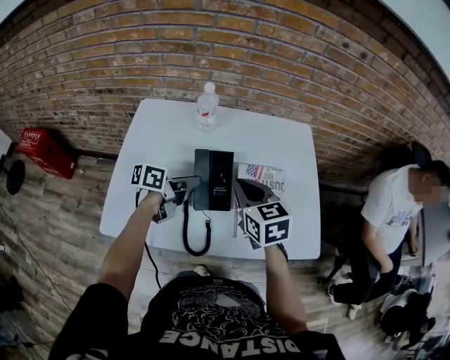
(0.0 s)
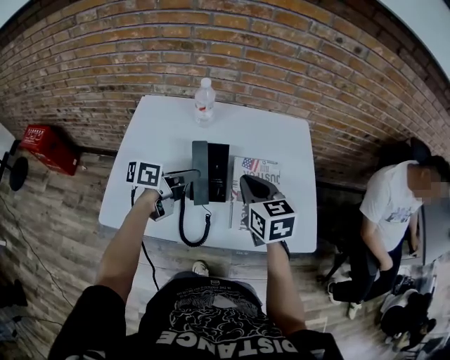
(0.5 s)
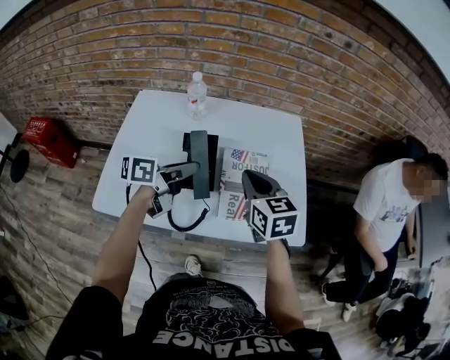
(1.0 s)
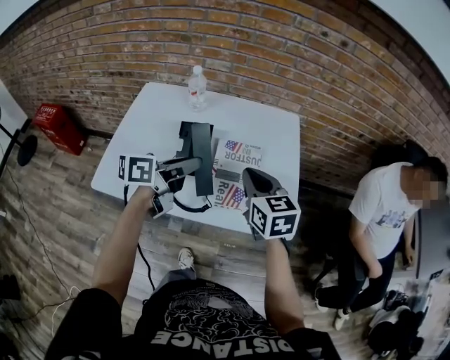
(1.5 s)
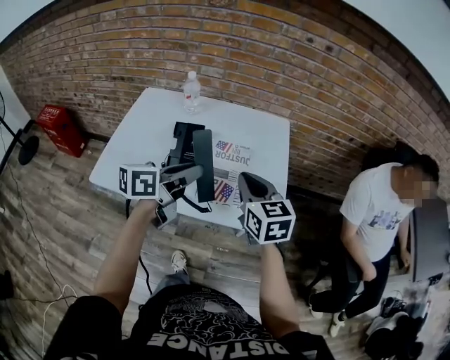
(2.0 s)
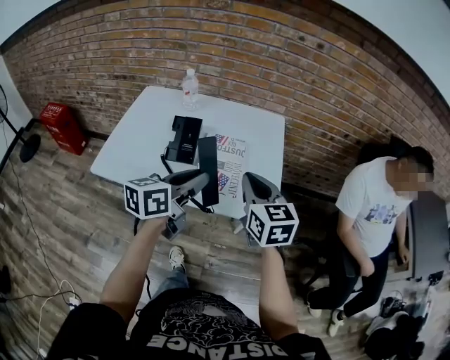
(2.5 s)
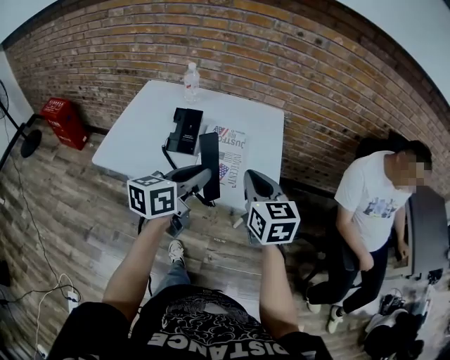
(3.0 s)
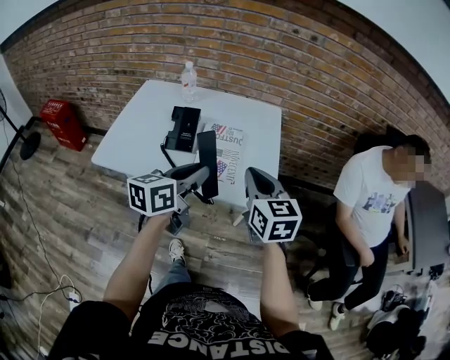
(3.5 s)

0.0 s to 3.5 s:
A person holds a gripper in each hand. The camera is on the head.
0.0 to 2.0 s: The left gripper moves to the right, upward and backward, about 30 cm, and turns by some 30 degrees; the right gripper goes approximately 20 cm to the right and backward.
2.0 to 3.5 s: Both grippers travel together backward and to the right, roughly 10 cm.

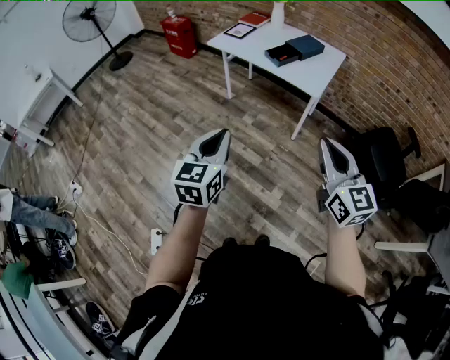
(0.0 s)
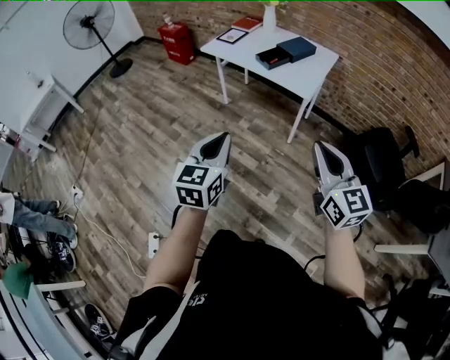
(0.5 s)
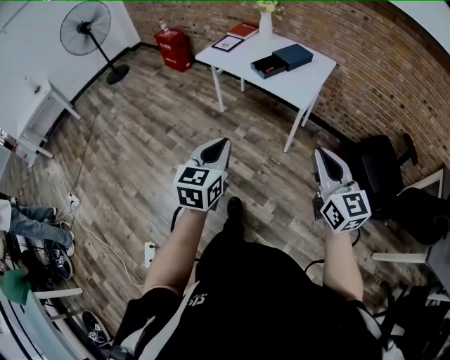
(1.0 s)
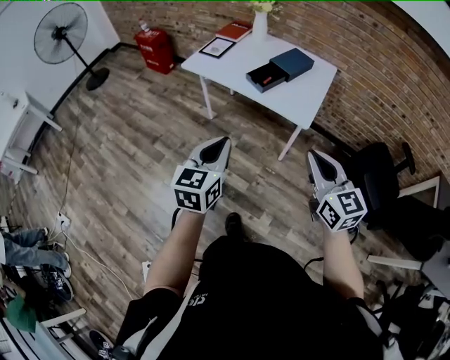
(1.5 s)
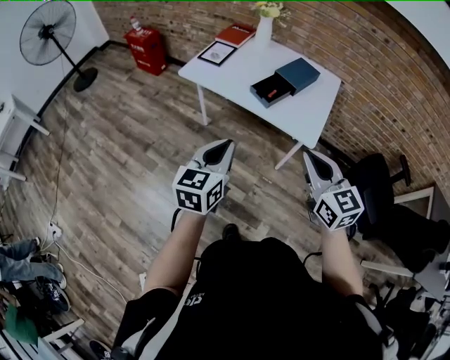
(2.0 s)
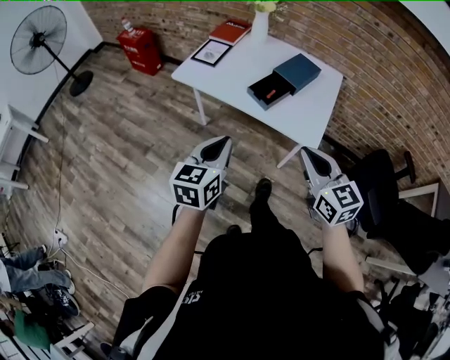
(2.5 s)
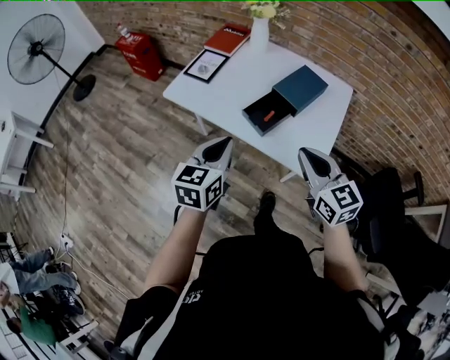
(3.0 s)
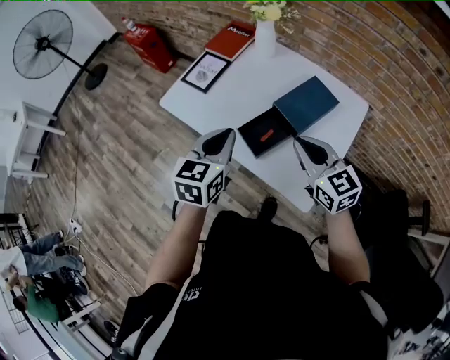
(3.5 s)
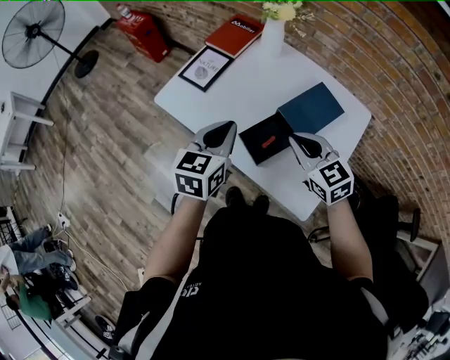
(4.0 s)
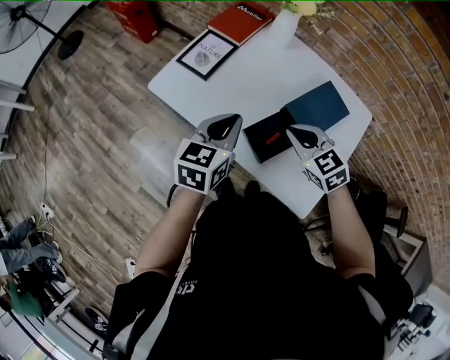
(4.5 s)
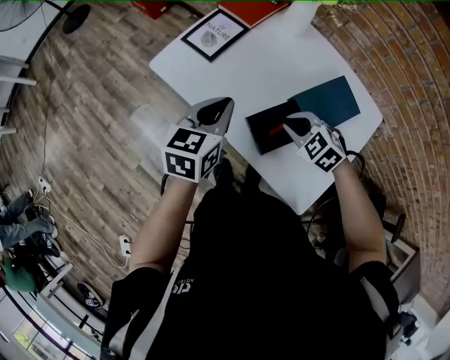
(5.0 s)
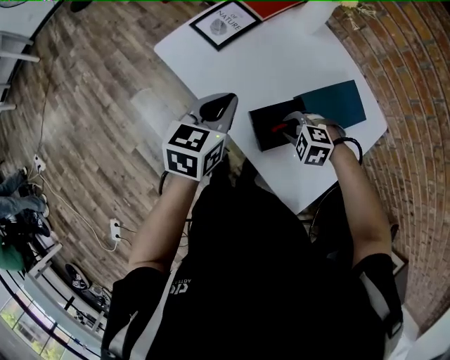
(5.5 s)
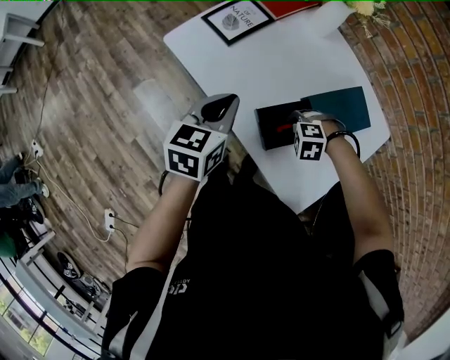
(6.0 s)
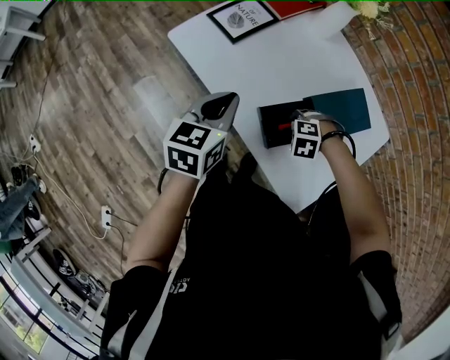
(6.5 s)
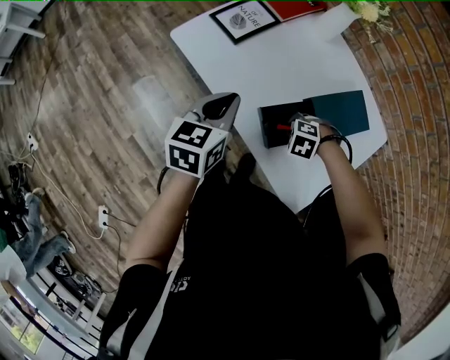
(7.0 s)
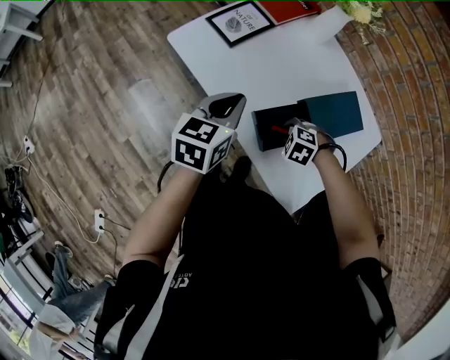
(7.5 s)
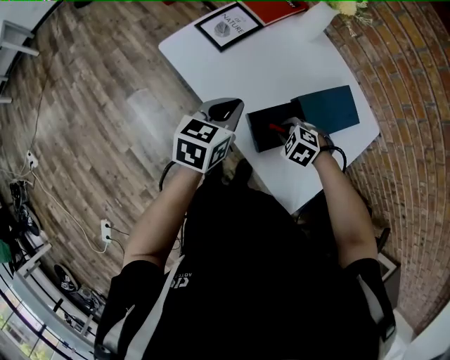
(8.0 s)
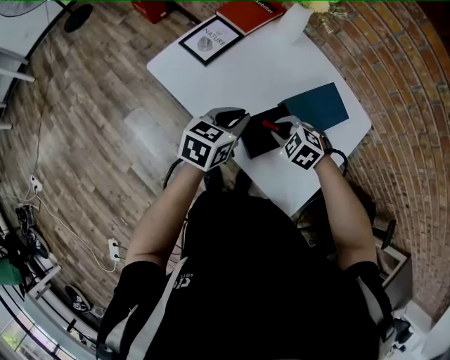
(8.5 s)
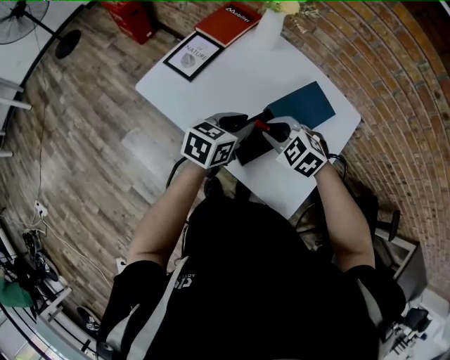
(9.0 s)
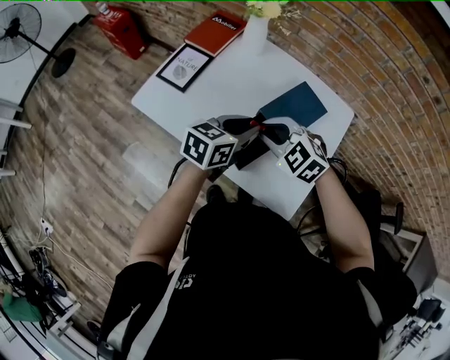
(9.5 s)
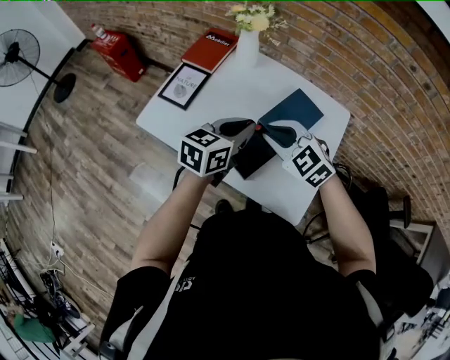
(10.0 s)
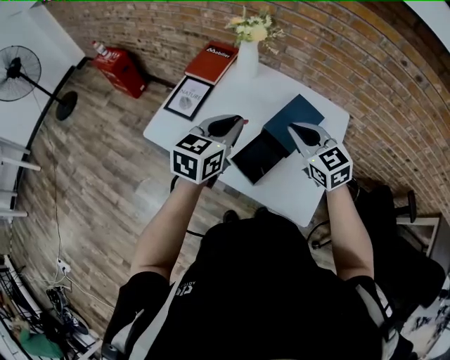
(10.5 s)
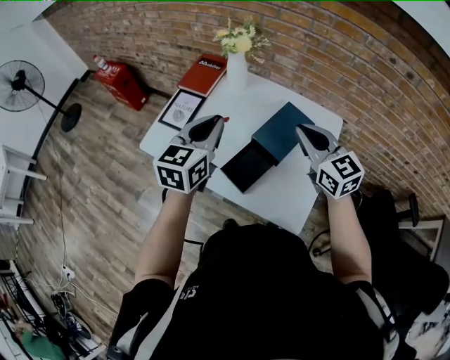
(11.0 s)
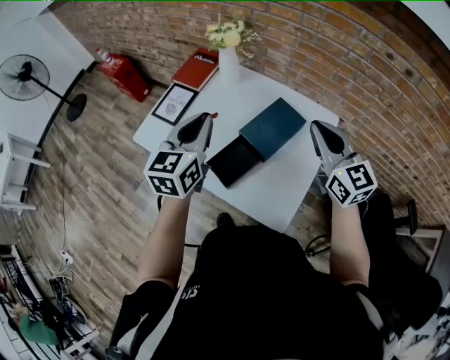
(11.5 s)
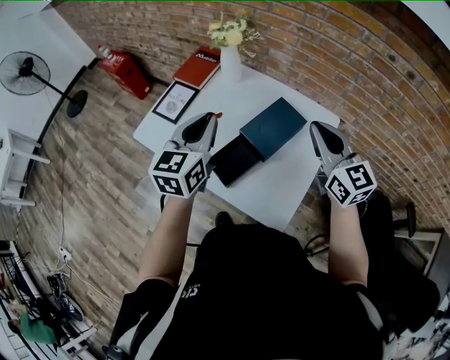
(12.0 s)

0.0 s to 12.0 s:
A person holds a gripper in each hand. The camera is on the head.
0.0 to 2.0 s: Both grippers travel together forward, roughly 35 cm.
2.0 to 4.0 s: Both grippers are carried forward, some 40 cm. The right gripper rotates approximately 30 degrees.
4.0 to 6.0 s: The right gripper is displaced downward by some 25 cm, and tilts its fingers some 60 degrees downward. The left gripper travels downward by some 10 cm.
6.0 to 8.0 s: The right gripper turns by about 30 degrees.
8.0 to 10.0 s: The left gripper changes place by roughly 15 cm, and swivels about 30 degrees, while the right gripper shifts roughly 25 cm upward, and angles its fingers upward, by roughly 40 degrees.
10.0 to 12.0 s: The right gripper heads to the right and upward, covering about 25 cm, and angles its fingers upward, by about 30 degrees; the left gripper is displaced upward by approximately 10 cm, and changes its angle by about 30 degrees.

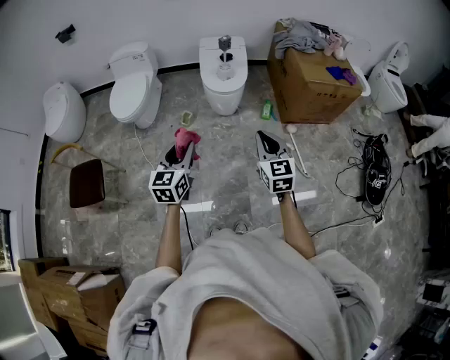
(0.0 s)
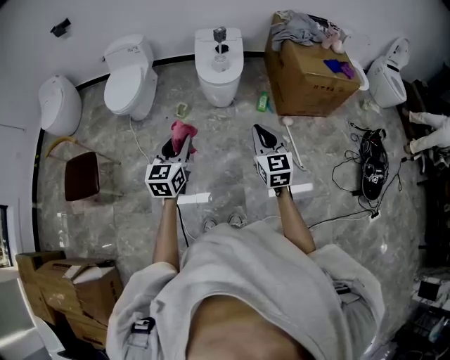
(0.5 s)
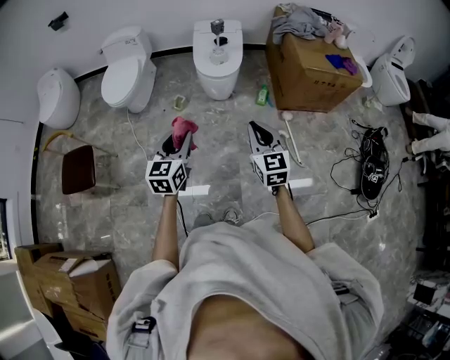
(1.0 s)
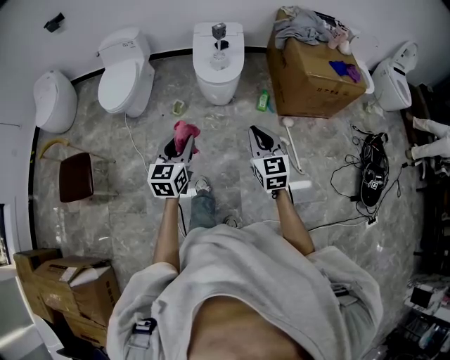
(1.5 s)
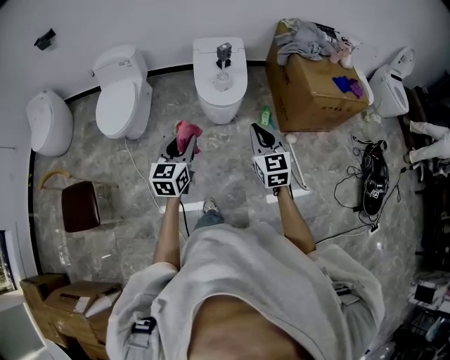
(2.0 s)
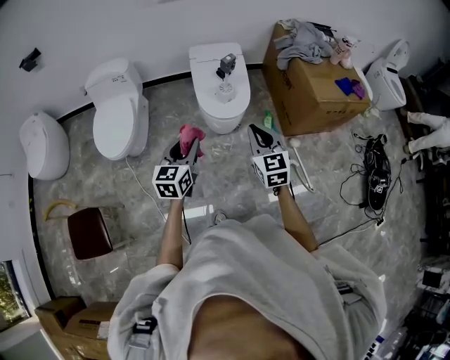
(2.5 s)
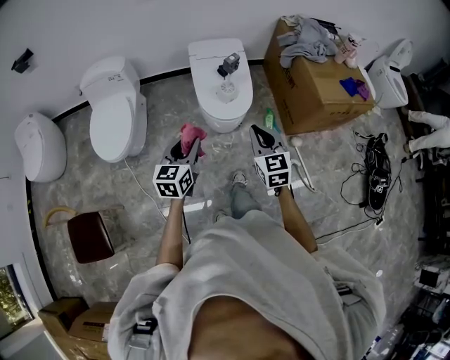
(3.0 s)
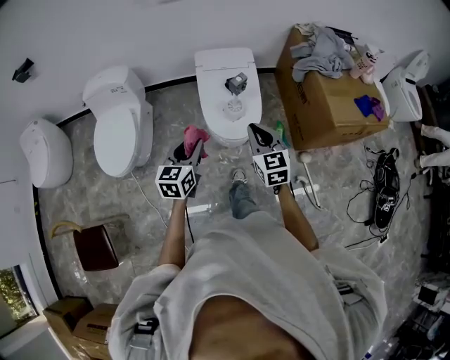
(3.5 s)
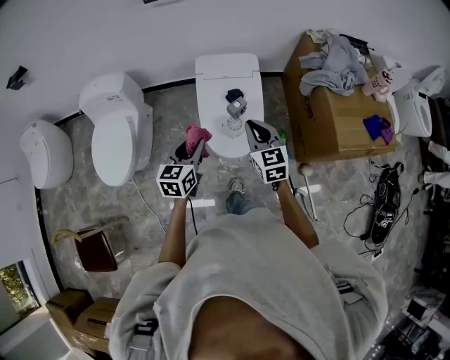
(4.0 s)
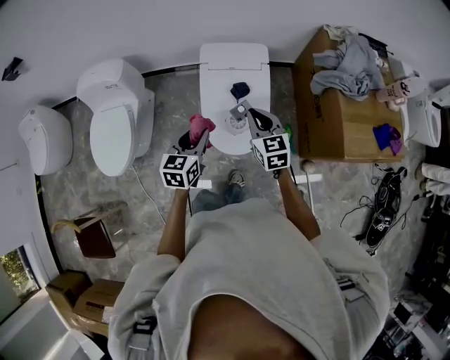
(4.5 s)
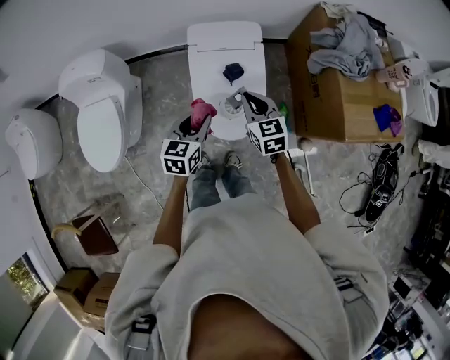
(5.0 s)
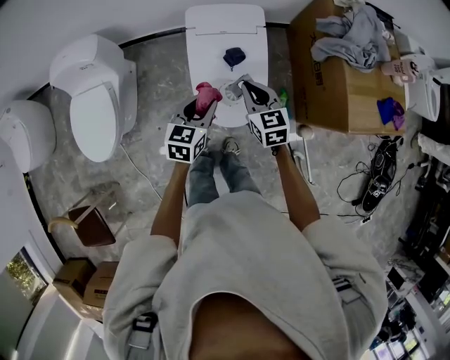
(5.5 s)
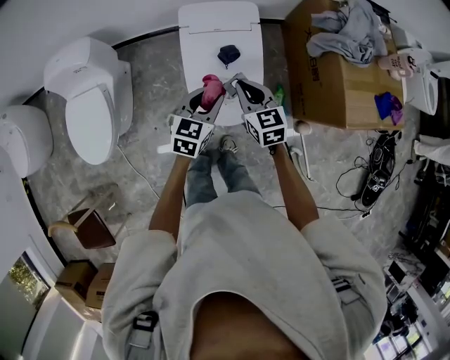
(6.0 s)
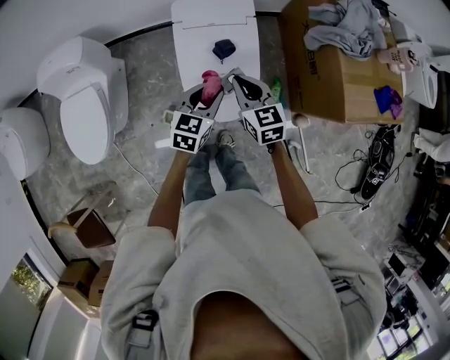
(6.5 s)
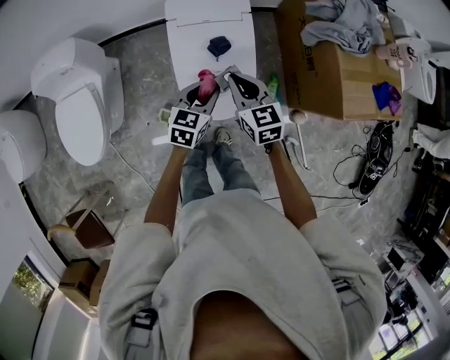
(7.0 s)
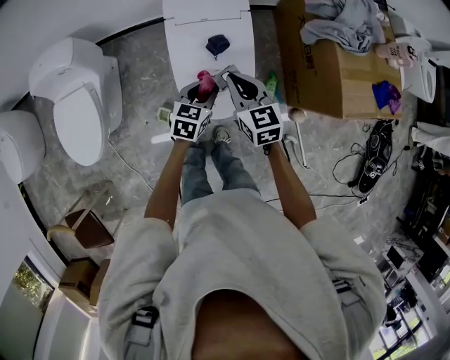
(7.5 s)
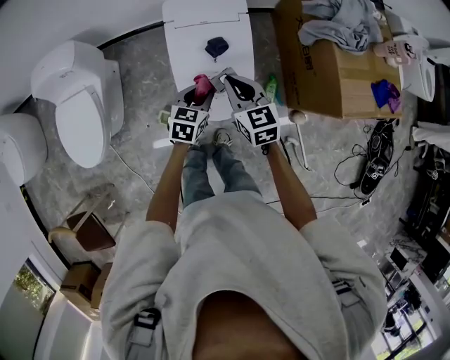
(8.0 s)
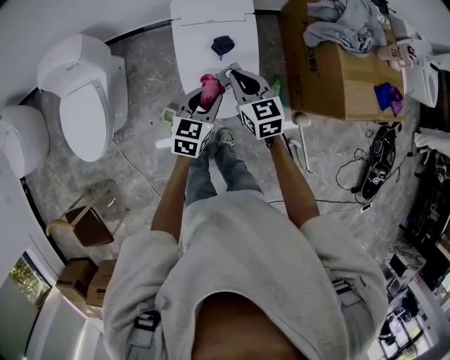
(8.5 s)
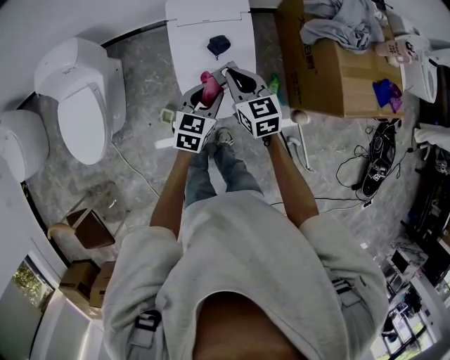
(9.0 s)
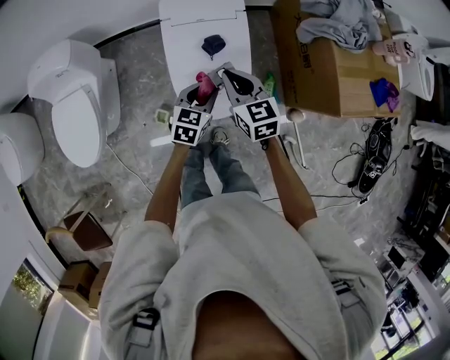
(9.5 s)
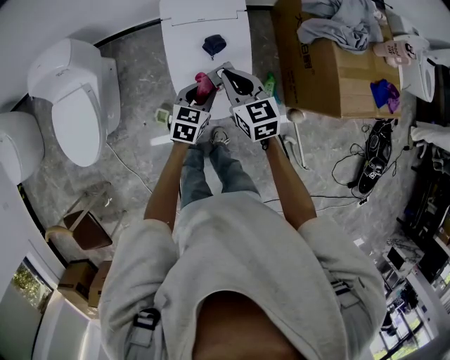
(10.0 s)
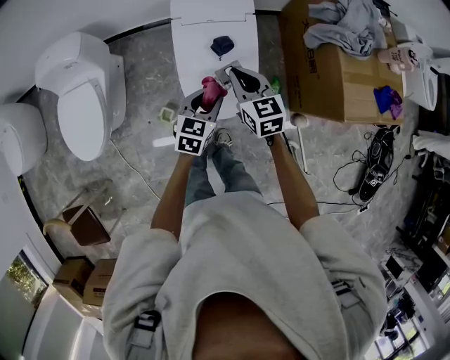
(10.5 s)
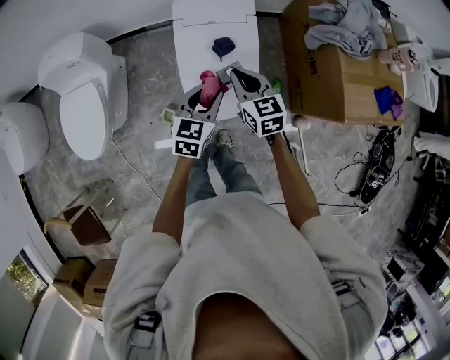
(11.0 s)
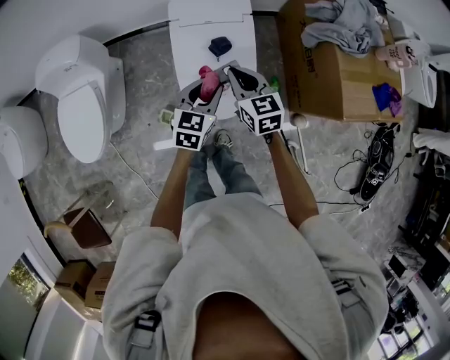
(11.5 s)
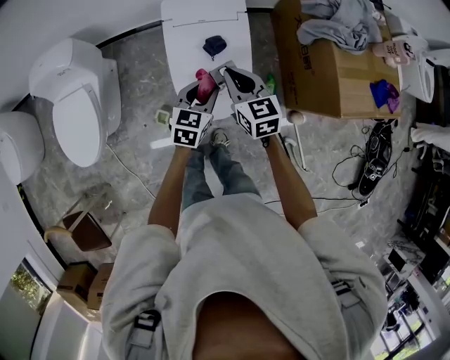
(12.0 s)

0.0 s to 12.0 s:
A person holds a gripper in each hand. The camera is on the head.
0.0 to 2.0 s: The two grippers go roughly 20 cm forward.
2.0 to 4.0 s: Both grippers move forward, approximately 40 cm.
4.0 to 6.0 s: The left gripper travels forward, downward and to the right by approximately 15 cm; the right gripper shifts about 15 cm downward and forward.
6.0 to 8.0 s: The left gripper goes approximately 10 cm downward.
